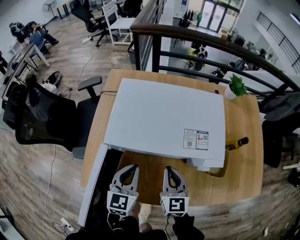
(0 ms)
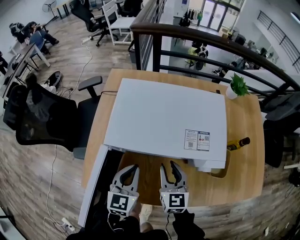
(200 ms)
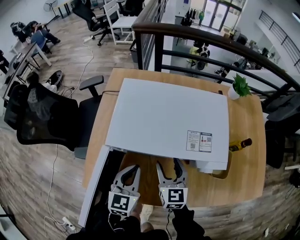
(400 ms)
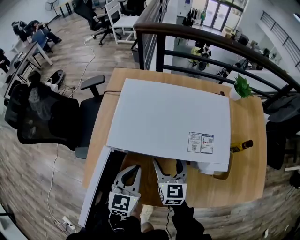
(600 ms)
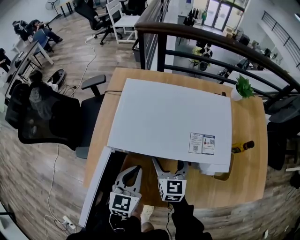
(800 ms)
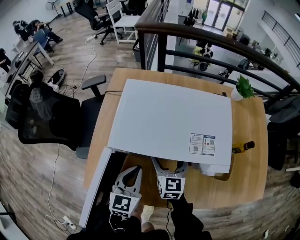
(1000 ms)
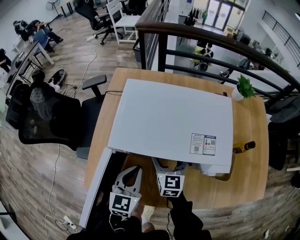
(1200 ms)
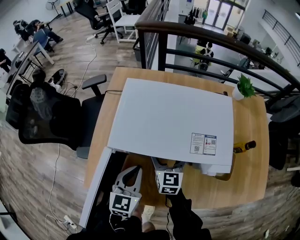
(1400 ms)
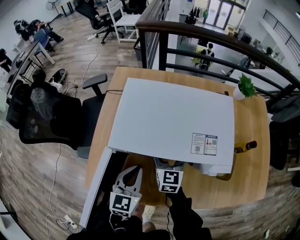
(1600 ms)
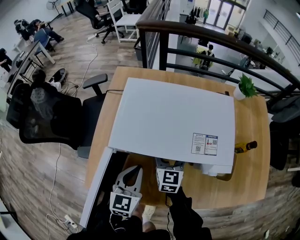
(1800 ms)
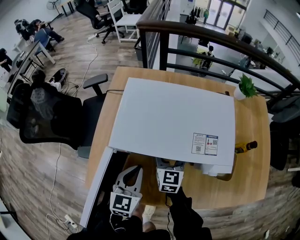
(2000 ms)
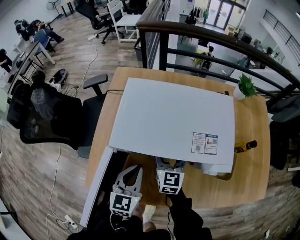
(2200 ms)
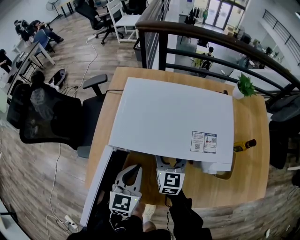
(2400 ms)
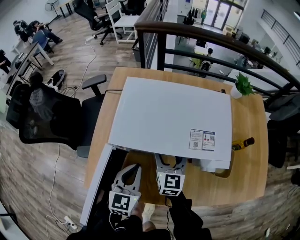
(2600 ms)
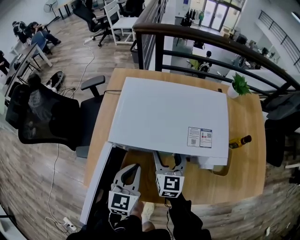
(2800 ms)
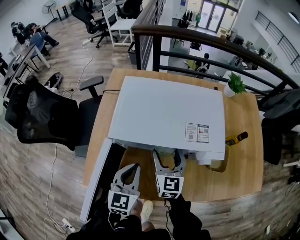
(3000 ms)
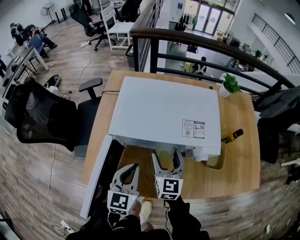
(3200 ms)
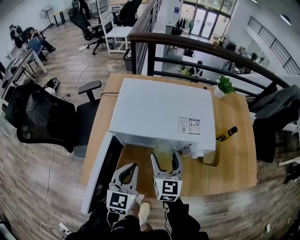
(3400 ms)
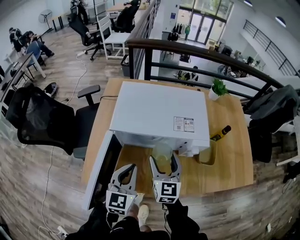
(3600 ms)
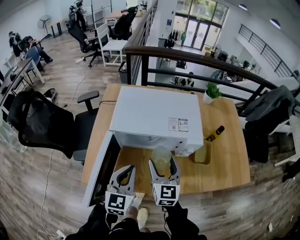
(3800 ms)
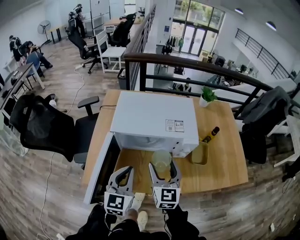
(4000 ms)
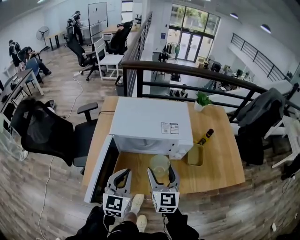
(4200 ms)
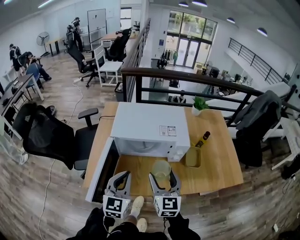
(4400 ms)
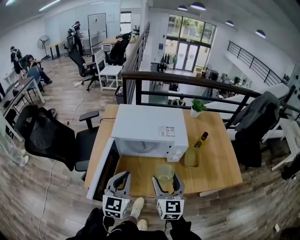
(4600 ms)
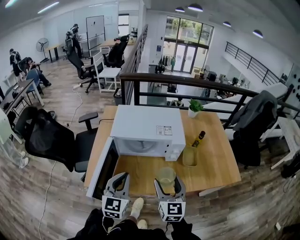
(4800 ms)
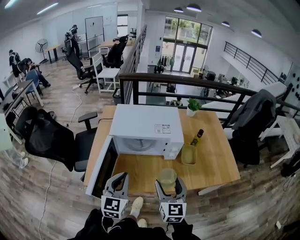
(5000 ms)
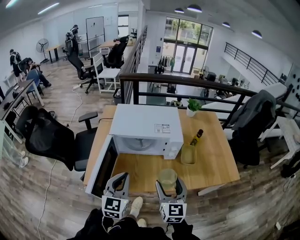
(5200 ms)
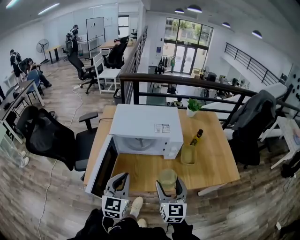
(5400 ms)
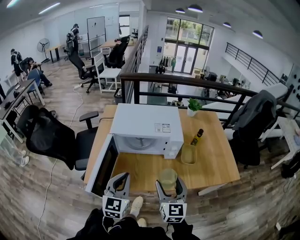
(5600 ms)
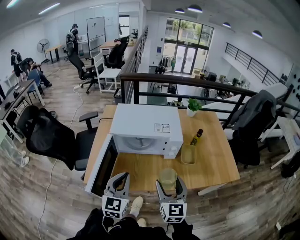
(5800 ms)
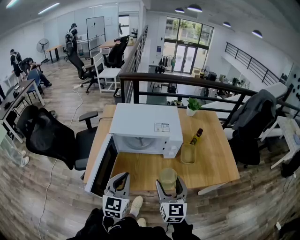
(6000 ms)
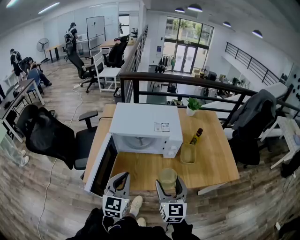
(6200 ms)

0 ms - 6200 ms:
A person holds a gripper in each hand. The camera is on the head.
0 ms - 1600 ms: The right gripper travels forward by approximately 10 cm, and opens up.
1600 ms - 3200 ms: The right gripper shifts approximately 10 cm backward and upward; the left gripper moves backward, roughly 5 cm.
3200 ms - 4600 ms: Both grippers travel together backward and upward, approximately 25 cm.
4600 ms - 6200 ms: The right gripper is displaced backward by approximately 5 cm.

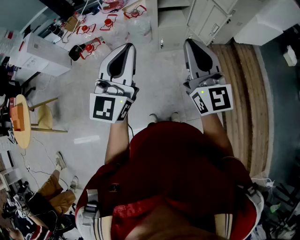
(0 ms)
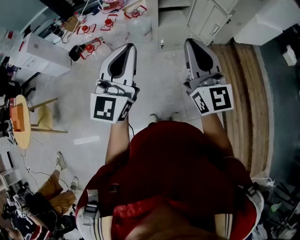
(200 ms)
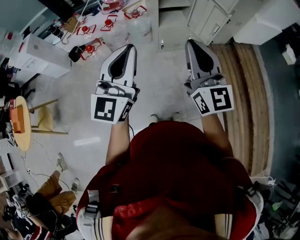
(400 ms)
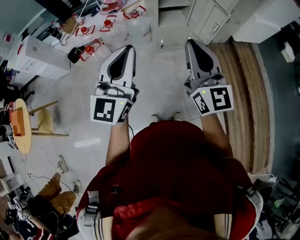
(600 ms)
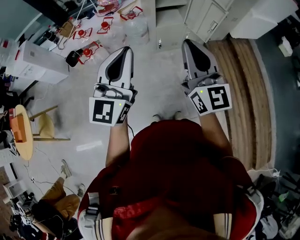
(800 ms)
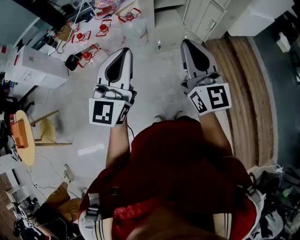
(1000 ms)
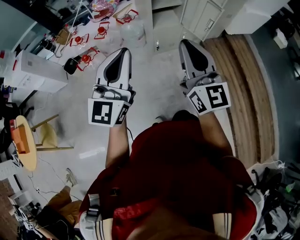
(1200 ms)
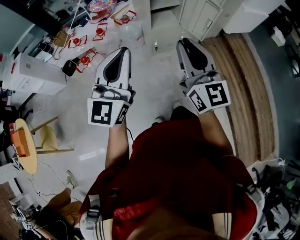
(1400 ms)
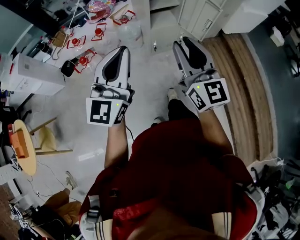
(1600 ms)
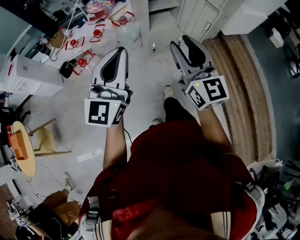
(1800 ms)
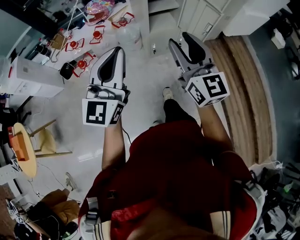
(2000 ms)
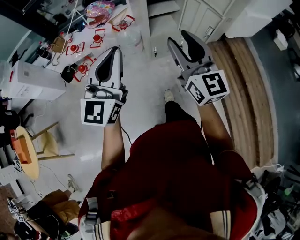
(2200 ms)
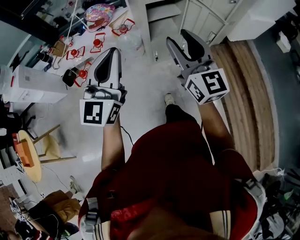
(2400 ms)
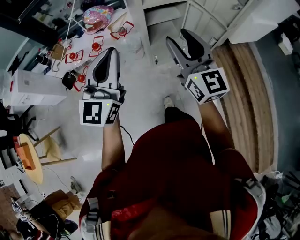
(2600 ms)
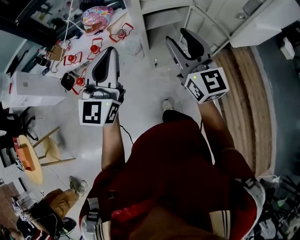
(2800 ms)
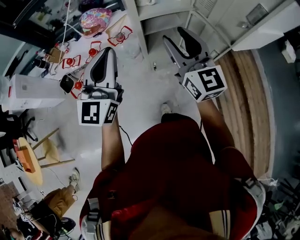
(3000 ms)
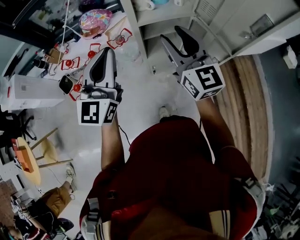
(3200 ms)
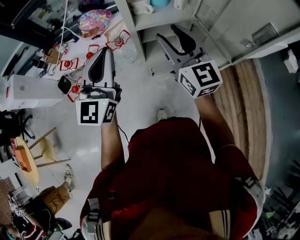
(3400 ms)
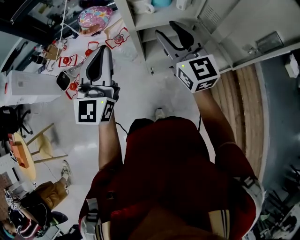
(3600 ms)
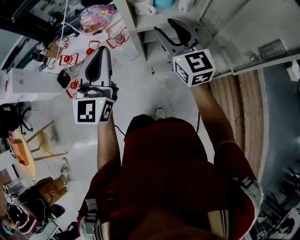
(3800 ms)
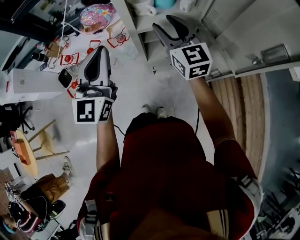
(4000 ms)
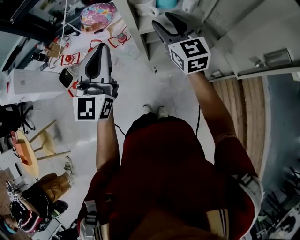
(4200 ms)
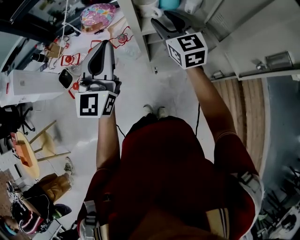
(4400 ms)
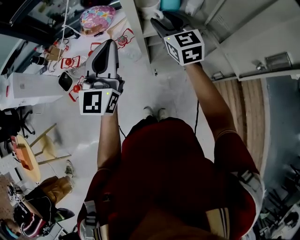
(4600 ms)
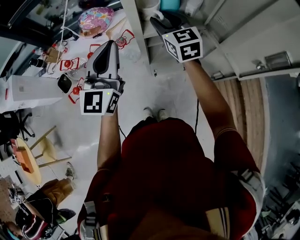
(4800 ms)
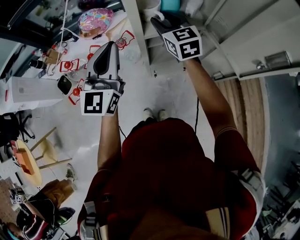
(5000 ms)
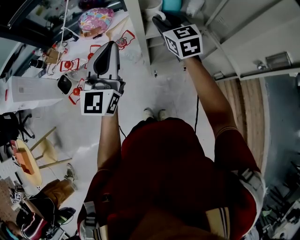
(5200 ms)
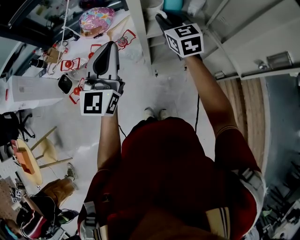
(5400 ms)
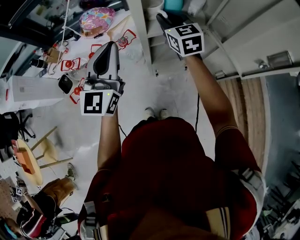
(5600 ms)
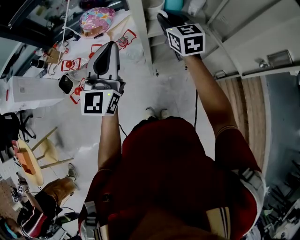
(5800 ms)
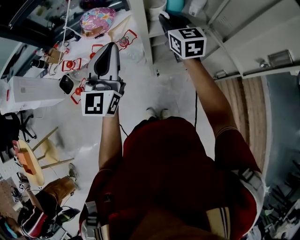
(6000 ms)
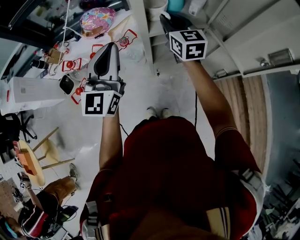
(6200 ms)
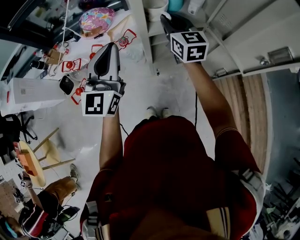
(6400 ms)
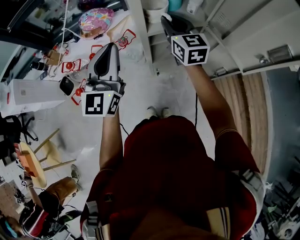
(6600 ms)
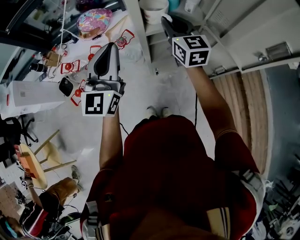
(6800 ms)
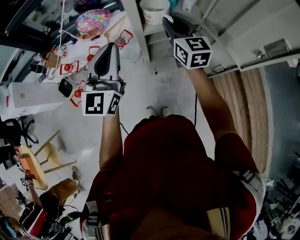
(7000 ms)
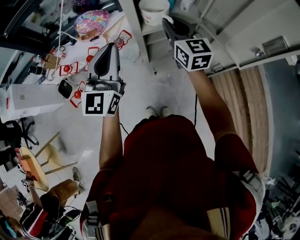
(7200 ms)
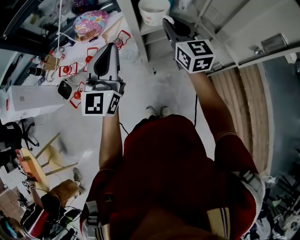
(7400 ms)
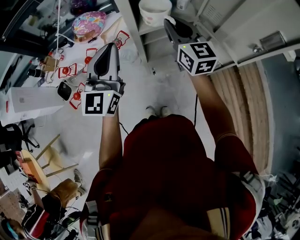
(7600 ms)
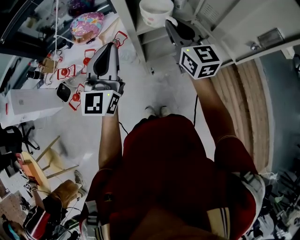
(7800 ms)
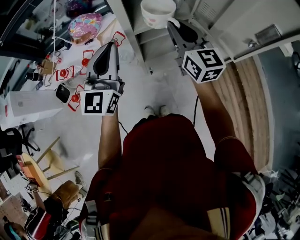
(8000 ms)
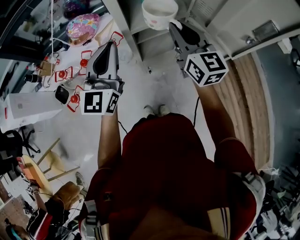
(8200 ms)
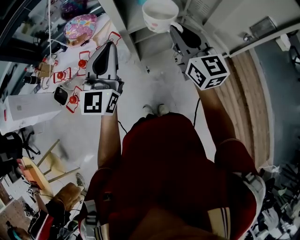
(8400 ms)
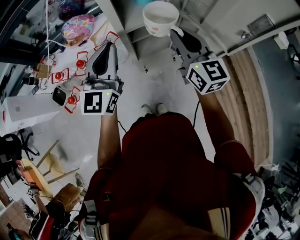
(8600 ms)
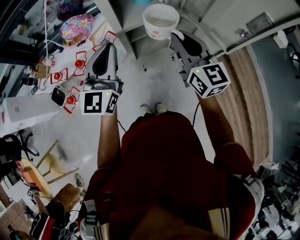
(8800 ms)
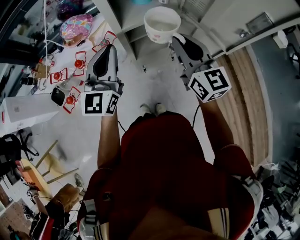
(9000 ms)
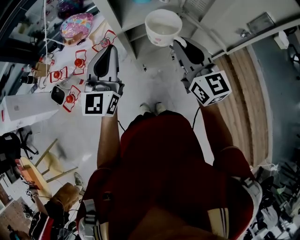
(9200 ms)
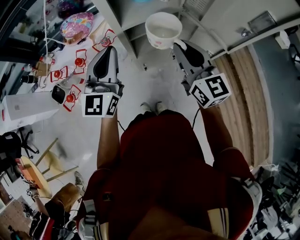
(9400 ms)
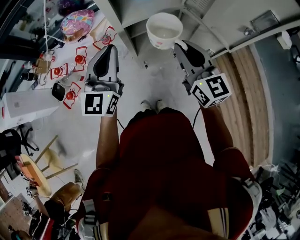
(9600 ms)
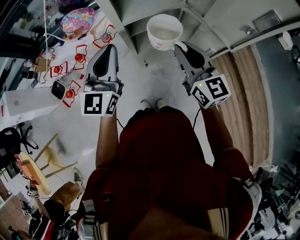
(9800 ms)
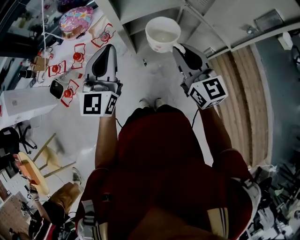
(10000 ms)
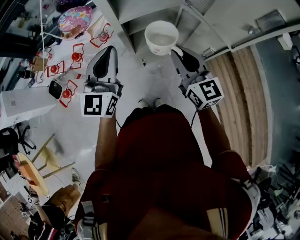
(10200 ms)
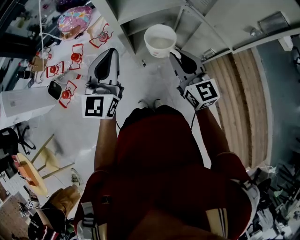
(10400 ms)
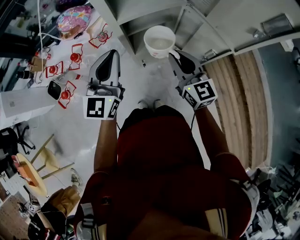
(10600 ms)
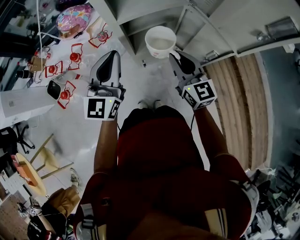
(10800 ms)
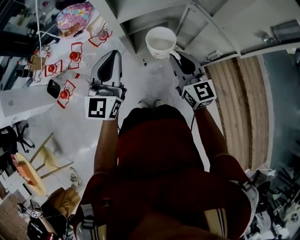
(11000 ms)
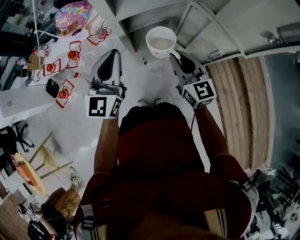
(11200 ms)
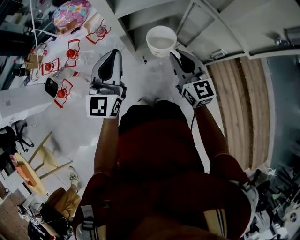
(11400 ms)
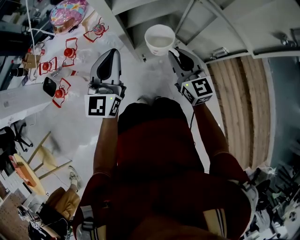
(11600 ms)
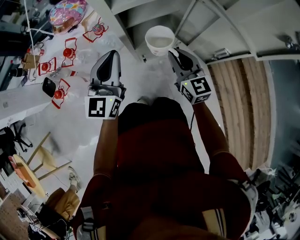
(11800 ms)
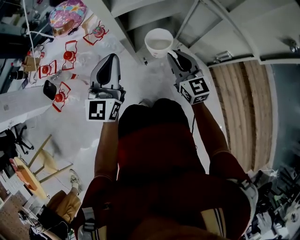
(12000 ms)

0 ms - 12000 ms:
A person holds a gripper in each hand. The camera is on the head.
0 ms - 1600 ms: Both grippers move to the left, about 10 cm. The right gripper opens.
1600 ms - 3000 ms: The grippers both shift forward by about 30 cm.
3000 ms - 4400 ms: The left gripper goes approximately 15 cm forward. Meanwhile the right gripper is displaced forward by about 20 cm.
4400 ms - 6000 ms: The right gripper closes its fingers.
6000 ms - 7600 ms: The right gripper moves backward, some 5 cm.
7600 ms - 9000 ms: The right gripper heads backward and to the right, covering some 10 cm.
9000 ms - 10400 ms: The right gripper goes approximately 10 cm downward, while the left gripper travels downward by roughly 5 cm.
10400 ms - 12000 ms: The grippers both shift downward by about 15 cm.

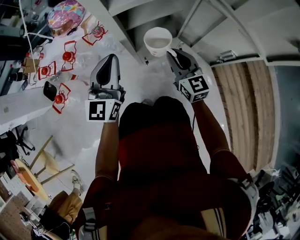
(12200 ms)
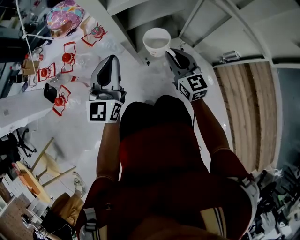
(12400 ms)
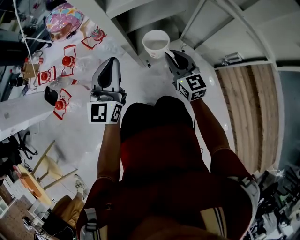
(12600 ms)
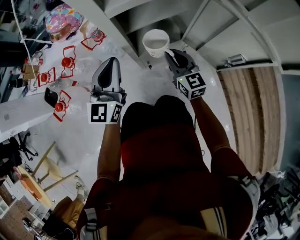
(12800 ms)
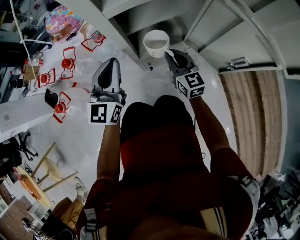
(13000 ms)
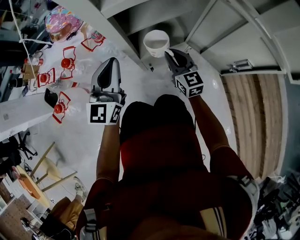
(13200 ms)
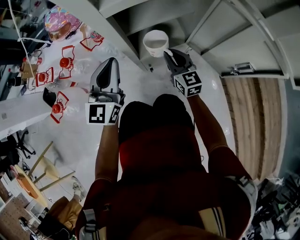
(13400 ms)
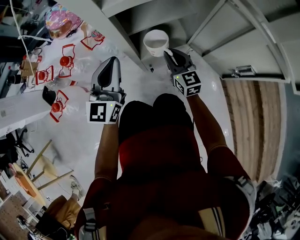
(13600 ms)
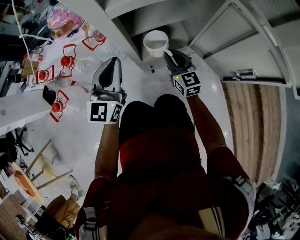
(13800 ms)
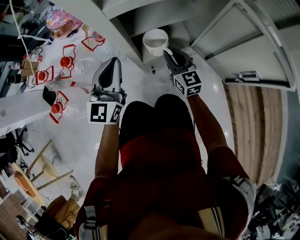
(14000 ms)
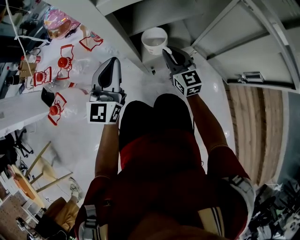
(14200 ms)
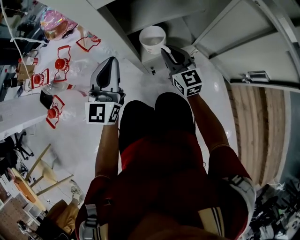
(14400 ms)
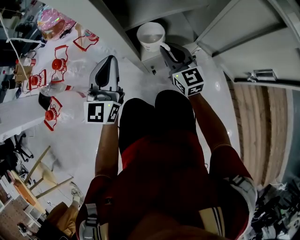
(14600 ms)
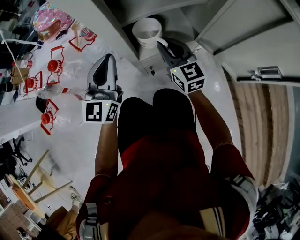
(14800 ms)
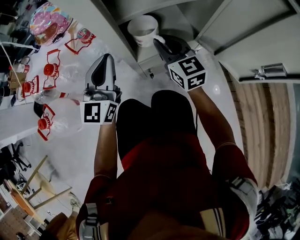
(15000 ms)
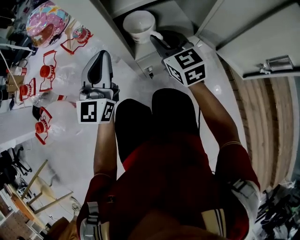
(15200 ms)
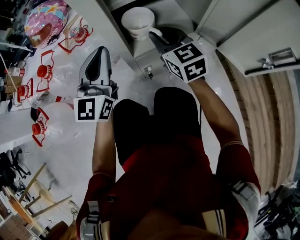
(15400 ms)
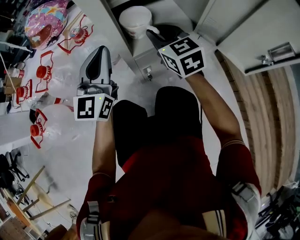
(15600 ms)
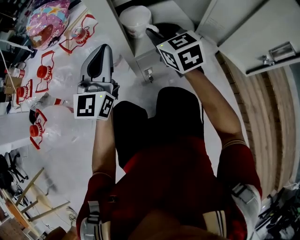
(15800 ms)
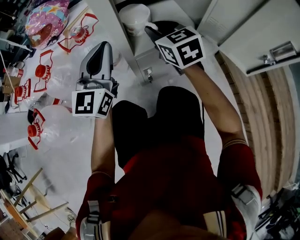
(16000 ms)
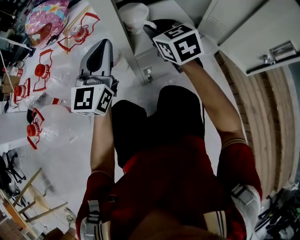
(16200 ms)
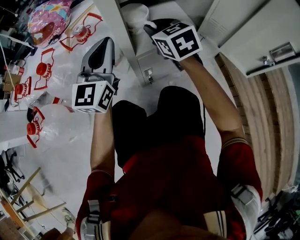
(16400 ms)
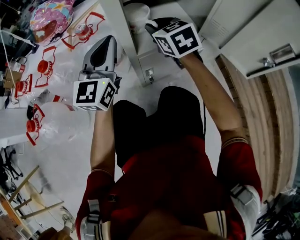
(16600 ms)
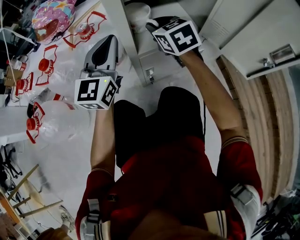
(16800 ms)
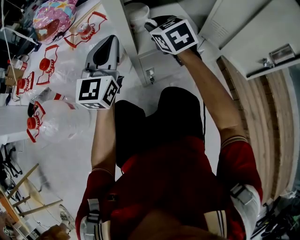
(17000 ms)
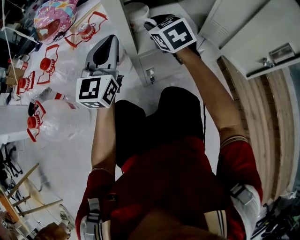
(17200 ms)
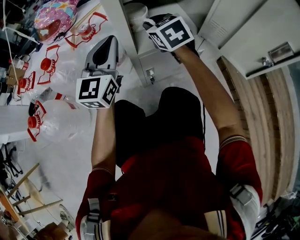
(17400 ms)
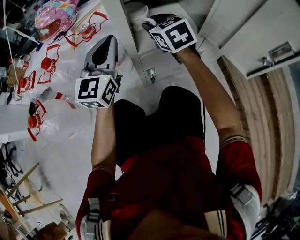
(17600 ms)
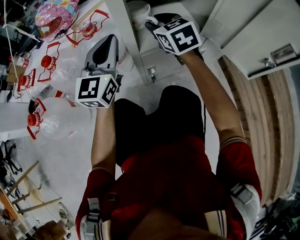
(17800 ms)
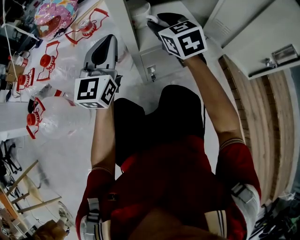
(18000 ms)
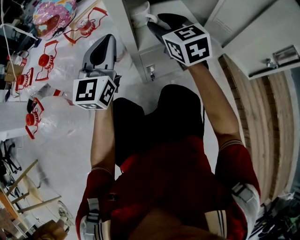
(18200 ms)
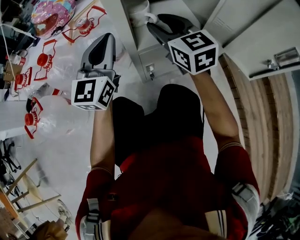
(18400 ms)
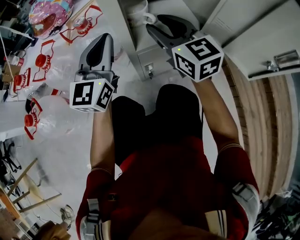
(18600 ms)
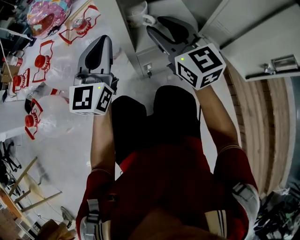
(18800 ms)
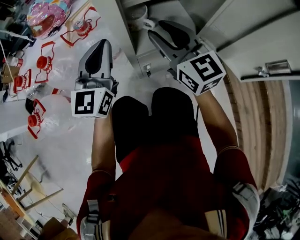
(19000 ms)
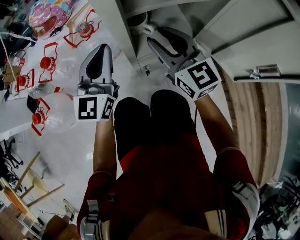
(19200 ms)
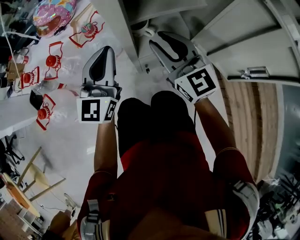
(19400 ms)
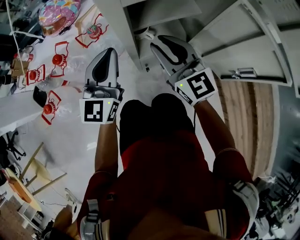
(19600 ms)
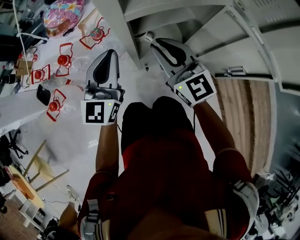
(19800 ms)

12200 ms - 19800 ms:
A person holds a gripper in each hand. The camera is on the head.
12200 ms - 13800 ms: The grippers both shift downward and forward by approximately 15 cm.
13800 ms - 15200 ms: The left gripper is displaced downward by some 15 cm. The right gripper shifts roughly 5 cm downward.
15200 ms - 16800 ms: The right gripper moves roughly 5 cm.
16800 ms - 18200 ms: The right gripper opens its fingers.
18200 ms - 19800 ms: Both grippers move upward, about 25 cm. The right gripper closes up.
